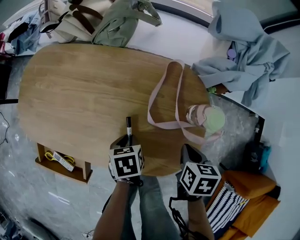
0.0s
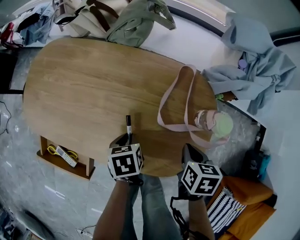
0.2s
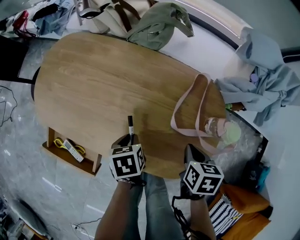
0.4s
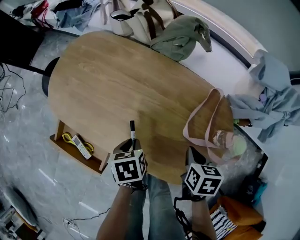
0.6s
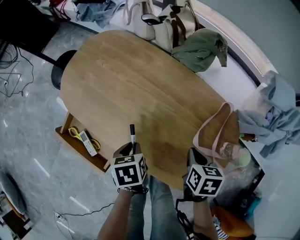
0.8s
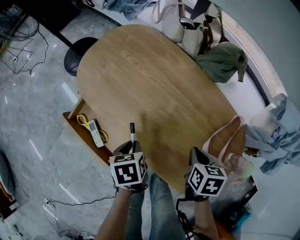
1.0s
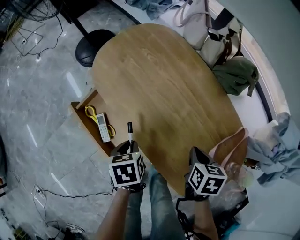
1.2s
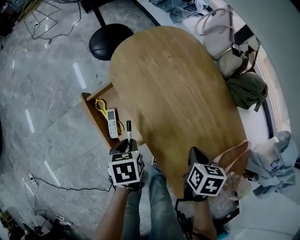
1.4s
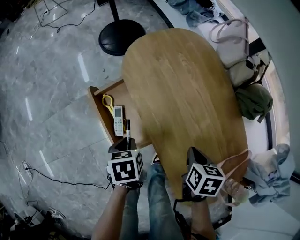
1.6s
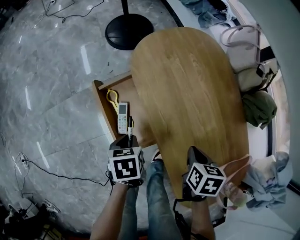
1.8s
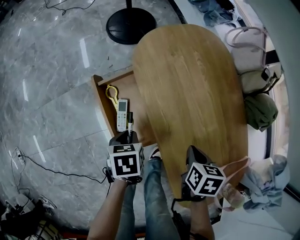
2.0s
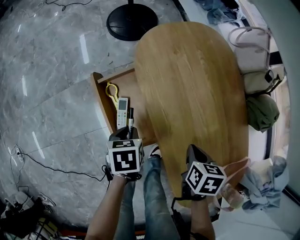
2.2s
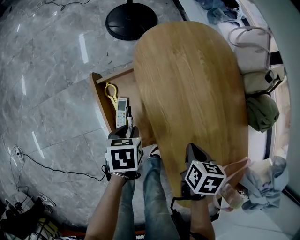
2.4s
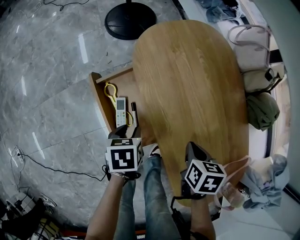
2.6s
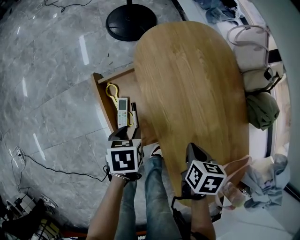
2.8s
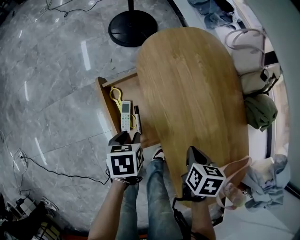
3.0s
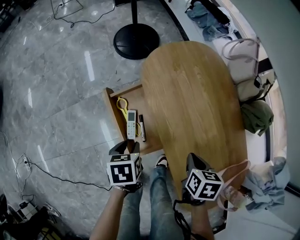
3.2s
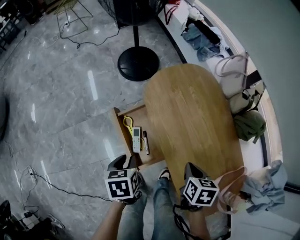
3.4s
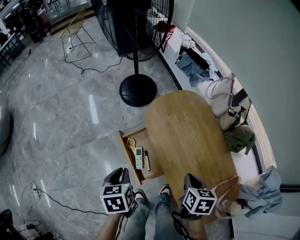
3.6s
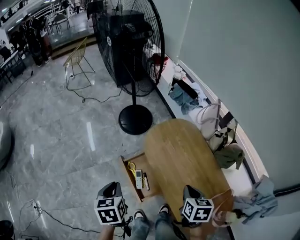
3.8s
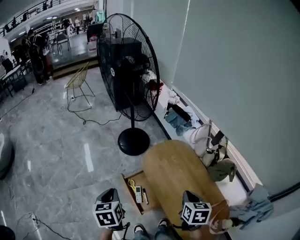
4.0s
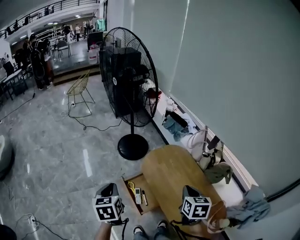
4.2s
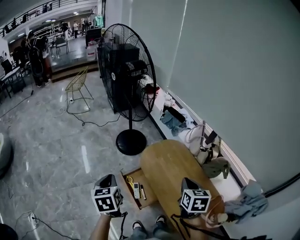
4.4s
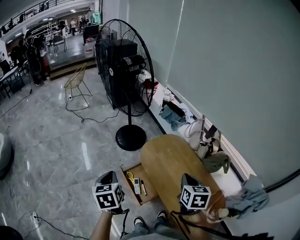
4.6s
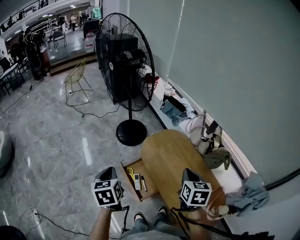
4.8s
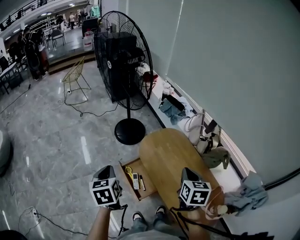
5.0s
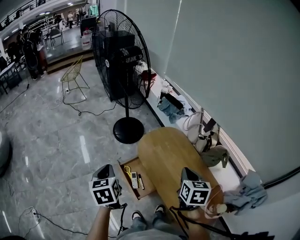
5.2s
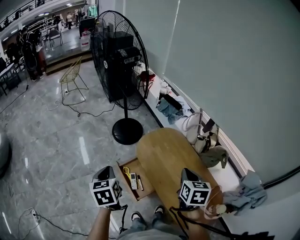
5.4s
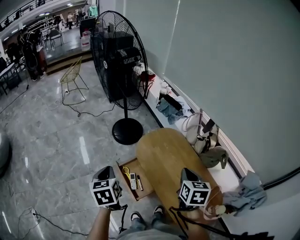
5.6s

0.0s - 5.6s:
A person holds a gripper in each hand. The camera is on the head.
0.0s - 1.4s: The left gripper shifts by some 35 cm, and twists some 40 degrees counterclockwise, seen from behind; the right gripper shifts by approximately 30 cm, and twists approximately 40 degrees counterclockwise, seen from behind.
1.4s - 2.8s: The grippers both shift to the left by roughly 5 cm. The left gripper opens its fingers.
2.8s - 4.2s: Both grippers move upward, roughly 40 cm. The right gripper changes its angle by approximately 30 degrees, while the left gripper tilts its fingers some 30 degrees upward, and closes up.
4.2s - 5.6s: The grippers make only small movements.

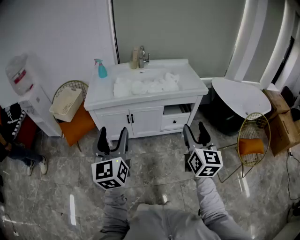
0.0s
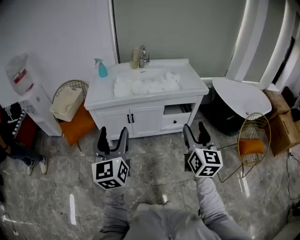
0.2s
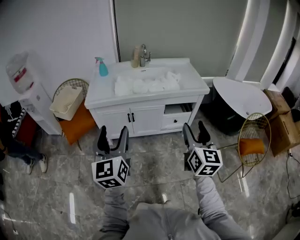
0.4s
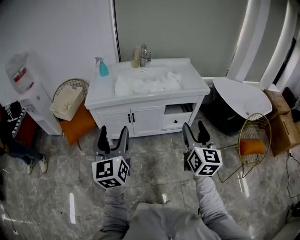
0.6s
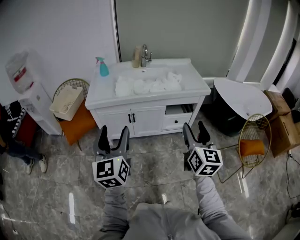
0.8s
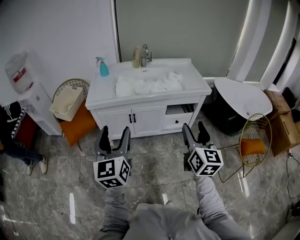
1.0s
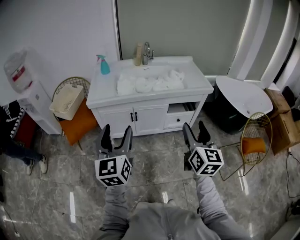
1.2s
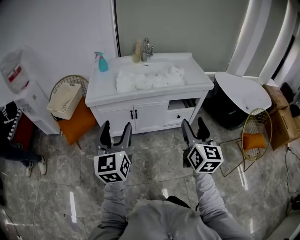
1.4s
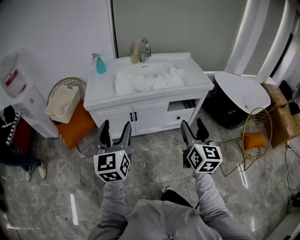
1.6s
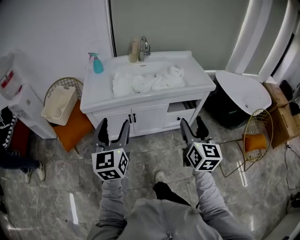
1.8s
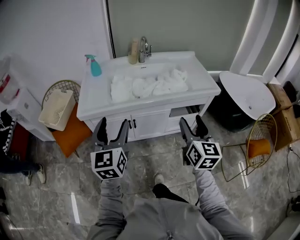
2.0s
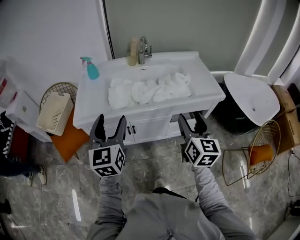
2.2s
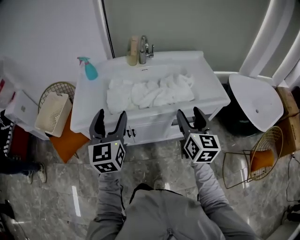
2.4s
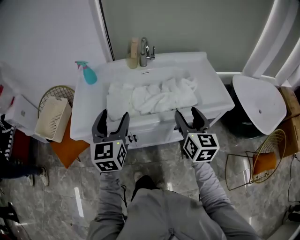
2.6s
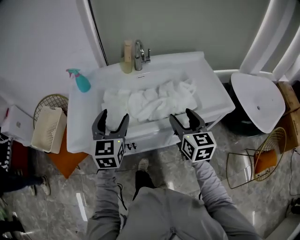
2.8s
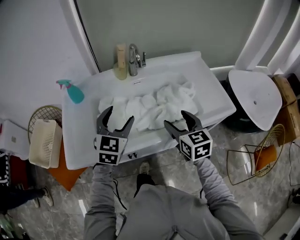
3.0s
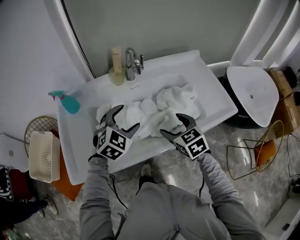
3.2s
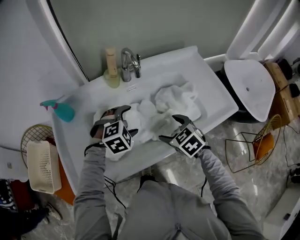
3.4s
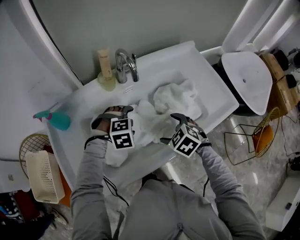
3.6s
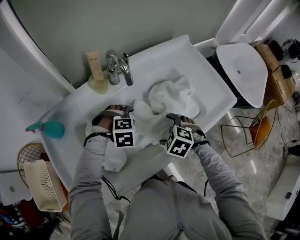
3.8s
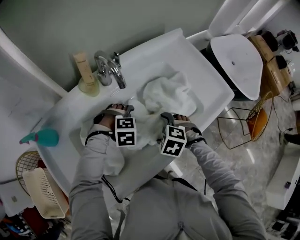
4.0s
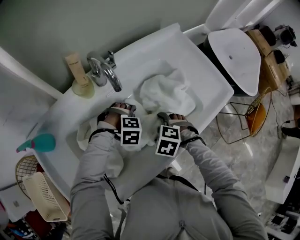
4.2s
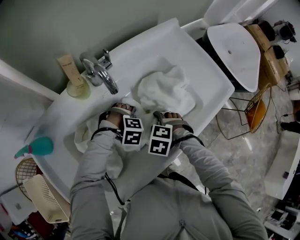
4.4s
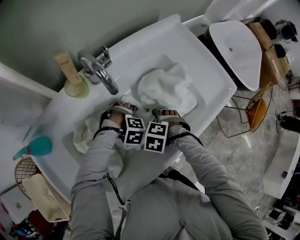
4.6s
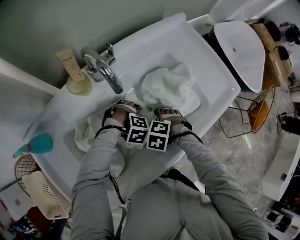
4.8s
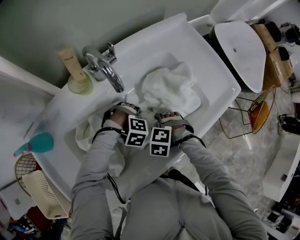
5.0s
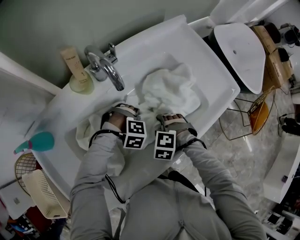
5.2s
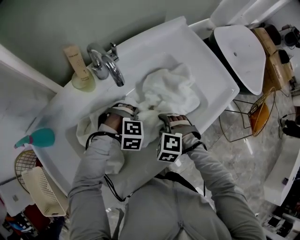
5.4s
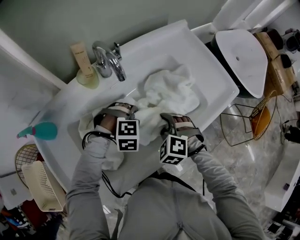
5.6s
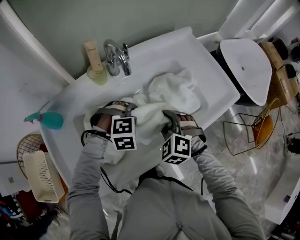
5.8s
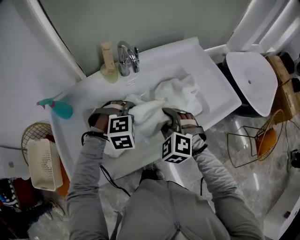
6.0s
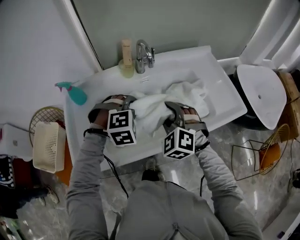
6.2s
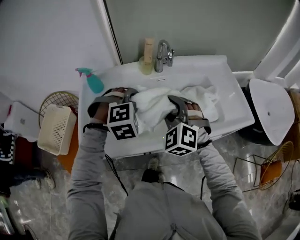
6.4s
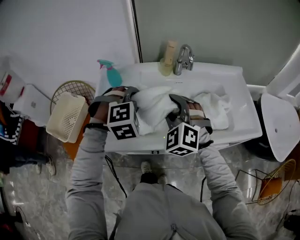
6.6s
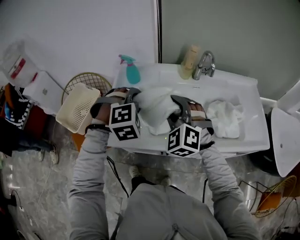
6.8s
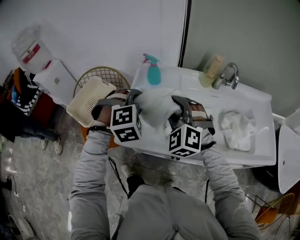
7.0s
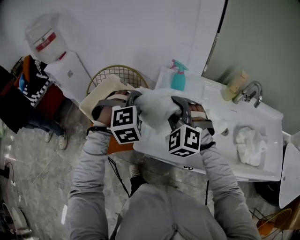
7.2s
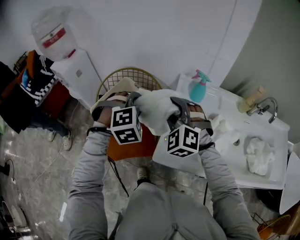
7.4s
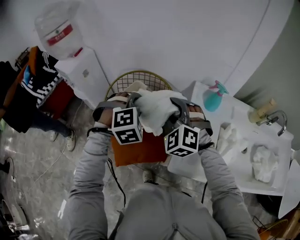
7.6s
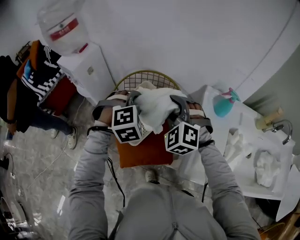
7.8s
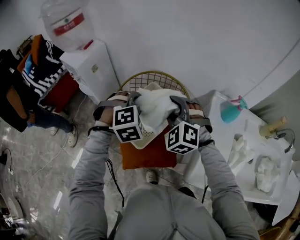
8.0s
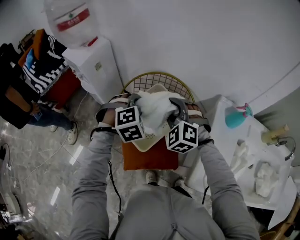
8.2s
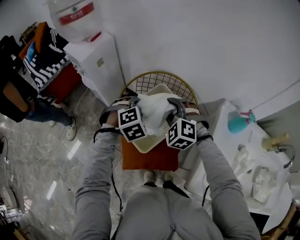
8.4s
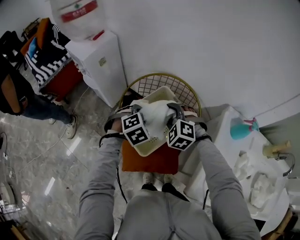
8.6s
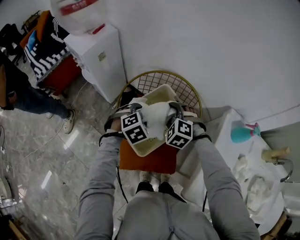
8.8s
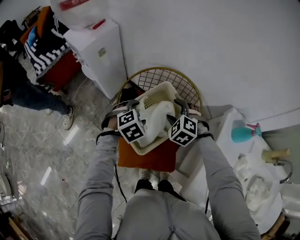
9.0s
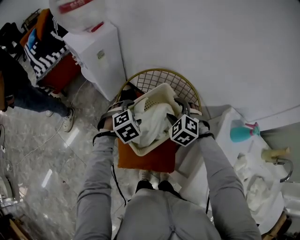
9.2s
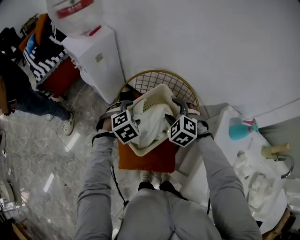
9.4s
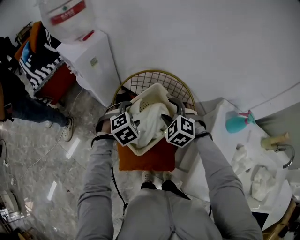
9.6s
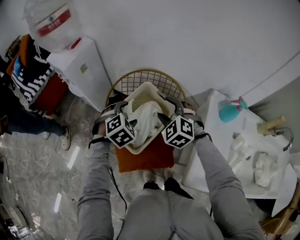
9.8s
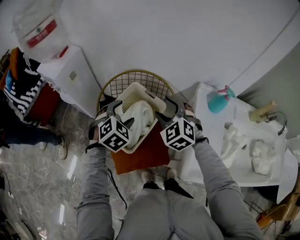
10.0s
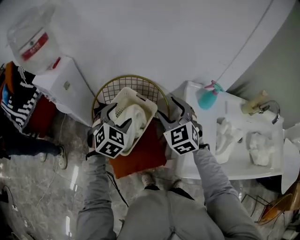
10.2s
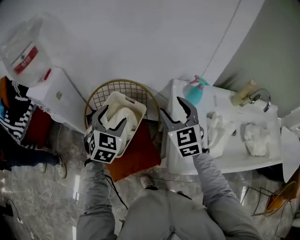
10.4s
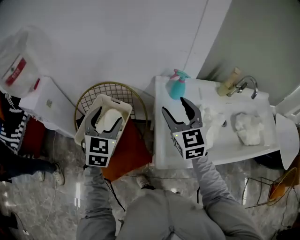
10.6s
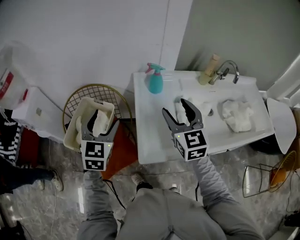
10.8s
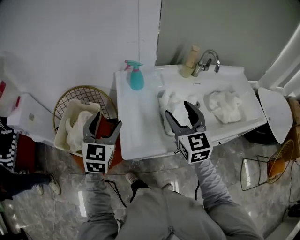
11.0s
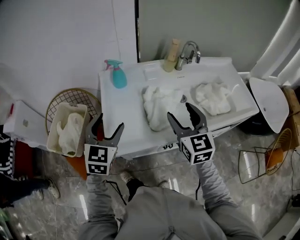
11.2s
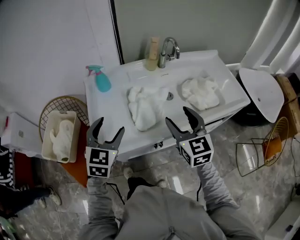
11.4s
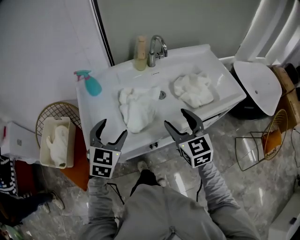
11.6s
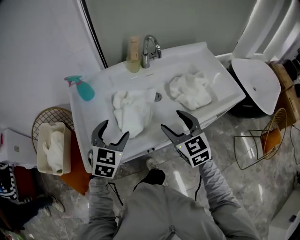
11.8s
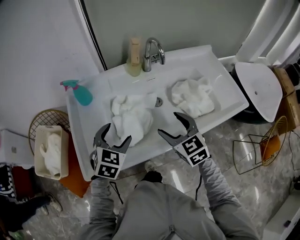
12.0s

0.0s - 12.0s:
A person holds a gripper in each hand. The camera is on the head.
0.0s - 1.6s: The right gripper is displaced to the left by approximately 5 cm. The left gripper shifts roughly 10 cm forward and to the left.
1.6s - 3.0s: Both grippers are carried forward, some 50 cm. The right gripper swivels some 30 degrees; the left gripper rotates approximately 30 degrees.
3.0s - 4.4s: Both grippers move downward, about 25 cm. The left gripper tips its fingers downward by roughly 70 degrees; the right gripper angles its fingers downward, by some 60 degrees.
4.4s - 6.0s: Both grippers move upward, approximately 15 cm. The left gripper swivels roughly 40 degrees, and closes. Meanwhile the right gripper tilts its fingers about 40 degrees upward, and closes up.
6.0s - 7.6s: Both grippers are carried some 60 cm. The right gripper rotates some 50 degrees. Meanwhile the left gripper turns by some 50 degrees.
7.6s - 9.0s: The left gripper heads downward, to the left and forward, covering approximately 25 cm, swivels approximately 40 degrees, and opens up; the right gripper shifts about 25 cm downward, forward and to the left, and changes its angle by about 30 degrees.
9.0s - 10.4s: The right gripper is displaced upward, to the right and backward by some 30 cm, and tilts its fingers approximately 40 degrees upward; the left gripper is displaced upward and to the right by some 20 cm, and tips its fingers upward by roughly 30 degrees.
10.4s - 12.0s: The two grippers travel together, approximately 50 cm. The right gripper turns by some 20 degrees; the left gripper turns by some 30 degrees.

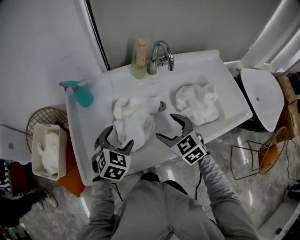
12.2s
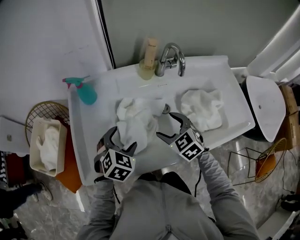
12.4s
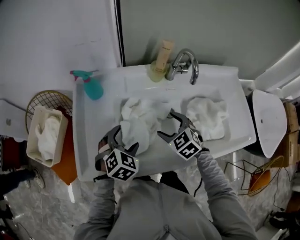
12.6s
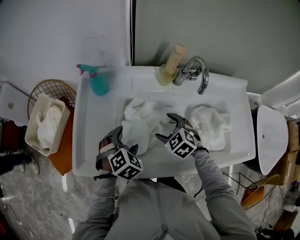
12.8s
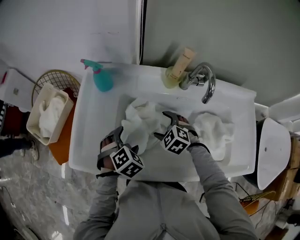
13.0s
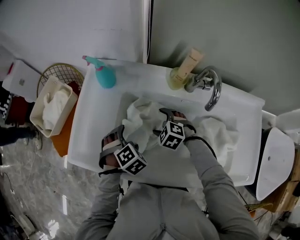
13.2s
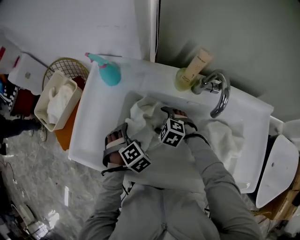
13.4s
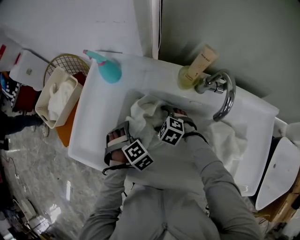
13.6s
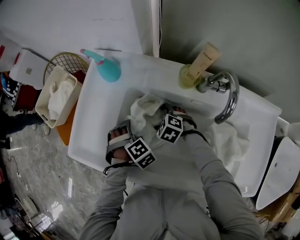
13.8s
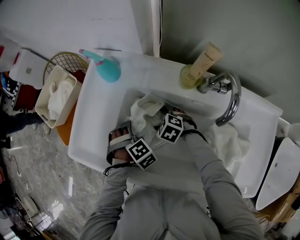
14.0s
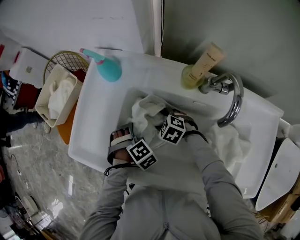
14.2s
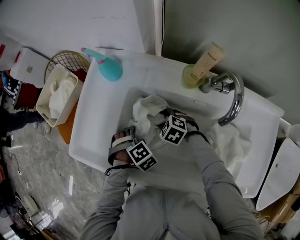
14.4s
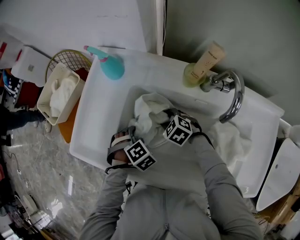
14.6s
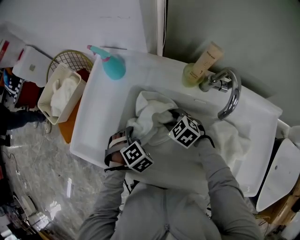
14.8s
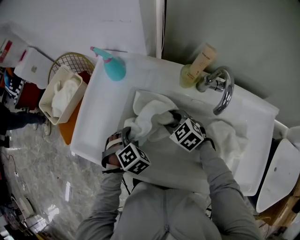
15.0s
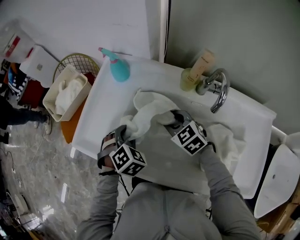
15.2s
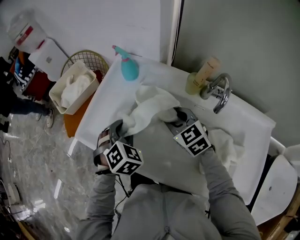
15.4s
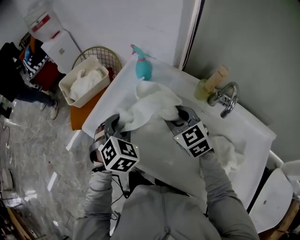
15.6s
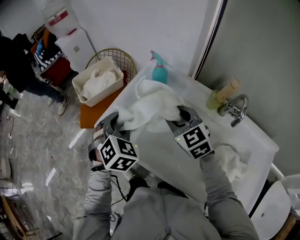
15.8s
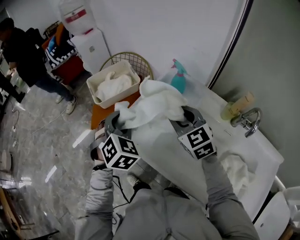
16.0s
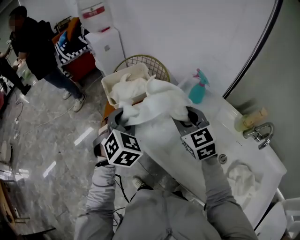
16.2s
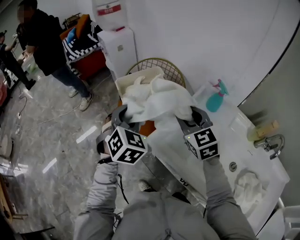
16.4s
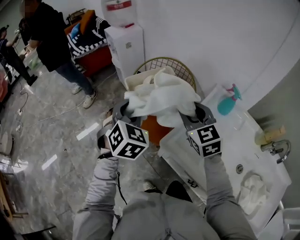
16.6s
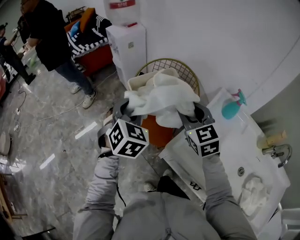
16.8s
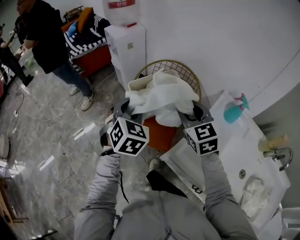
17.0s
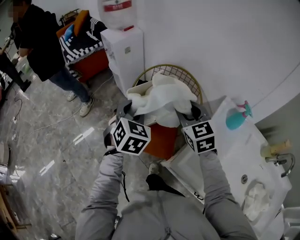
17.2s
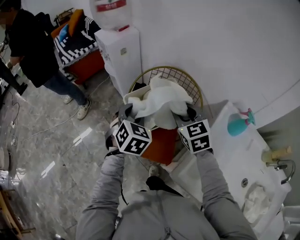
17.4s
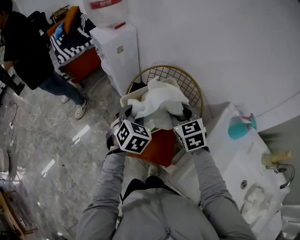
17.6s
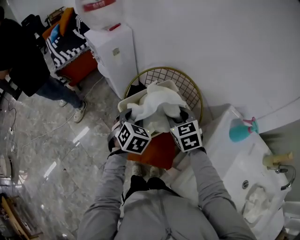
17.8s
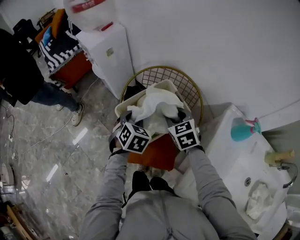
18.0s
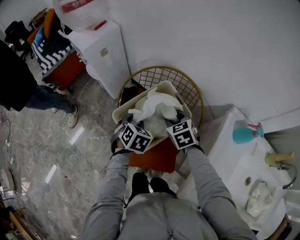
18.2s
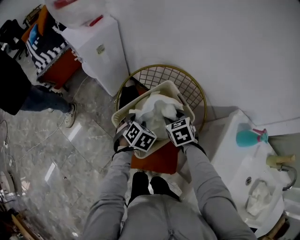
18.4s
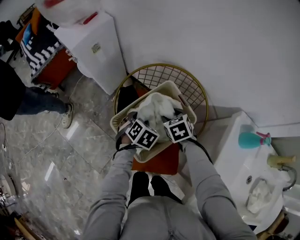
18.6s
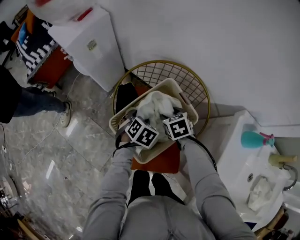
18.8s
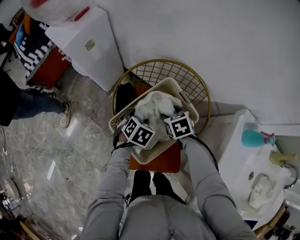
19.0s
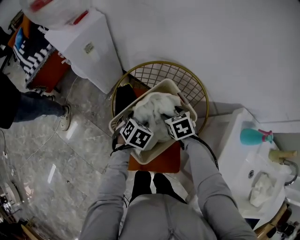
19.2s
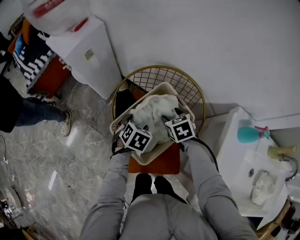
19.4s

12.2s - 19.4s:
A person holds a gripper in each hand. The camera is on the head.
12.2s - 13.6s: The grippers both shift downward by some 15 cm. The right gripper swivels approximately 50 degrees; the left gripper rotates roughly 40 degrees.
13.6s - 15.0s: The left gripper closes up. Meanwhile the right gripper moves upward, approximately 10 cm, and closes its fingers.
15.0s - 16.6s: The pair of grippers is taken to the left and forward, roughly 40 cm. Both grippers travel together upward, roughly 25 cm. The left gripper tips its fingers upward by about 30 degrees. The right gripper rotates approximately 30 degrees.
16.6s - 18.0s: Both grippers travel together forward and downward, roughly 30 cm. The right gripper turns by approximately 20 degrees; the left gripper turns by some 20 degrees.
18.0s - 19.4s: The two grippers go approximately 15 cm downward and forward. The left gripper changes its angle by some 20 degrees, and opens up. The right gripper changes its angle by about 20 degrees.
